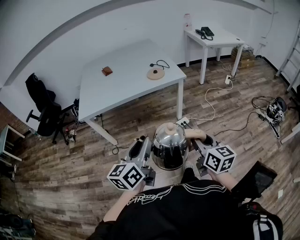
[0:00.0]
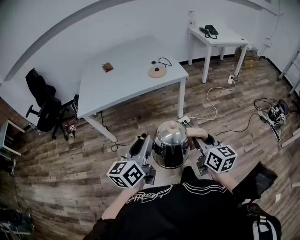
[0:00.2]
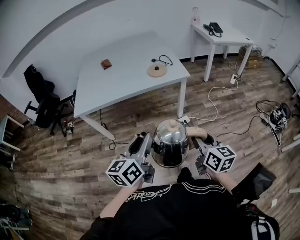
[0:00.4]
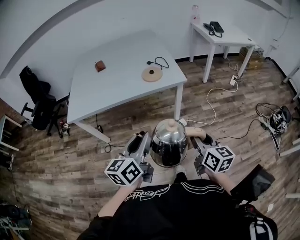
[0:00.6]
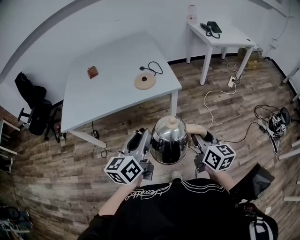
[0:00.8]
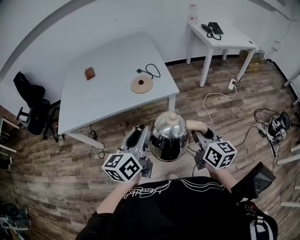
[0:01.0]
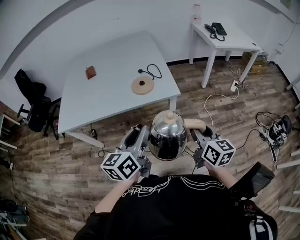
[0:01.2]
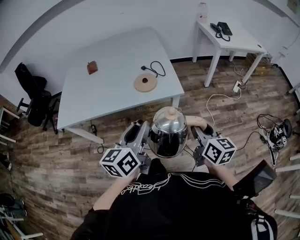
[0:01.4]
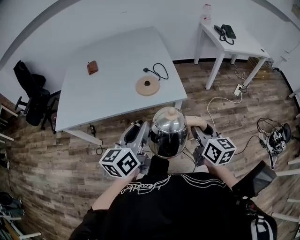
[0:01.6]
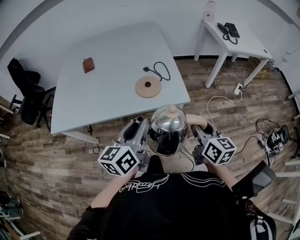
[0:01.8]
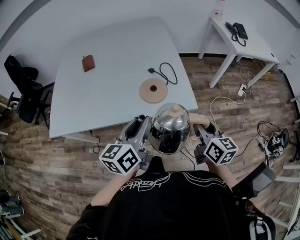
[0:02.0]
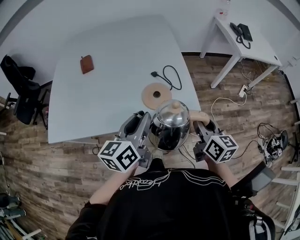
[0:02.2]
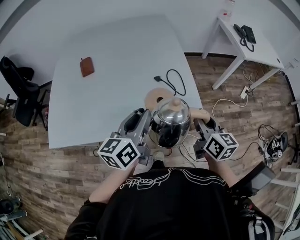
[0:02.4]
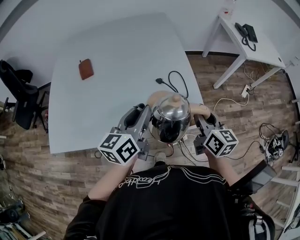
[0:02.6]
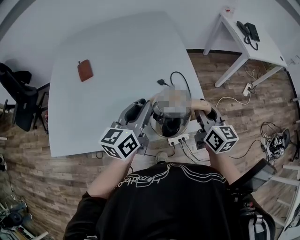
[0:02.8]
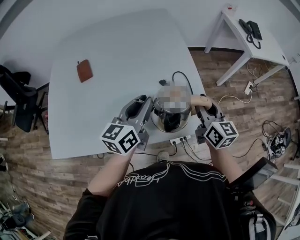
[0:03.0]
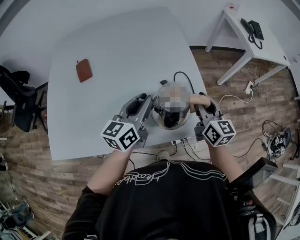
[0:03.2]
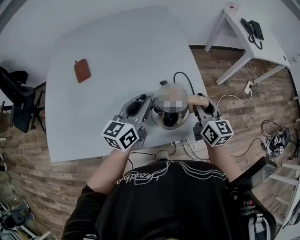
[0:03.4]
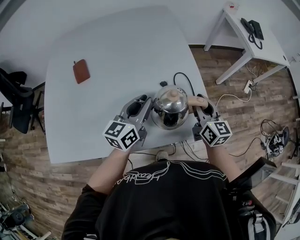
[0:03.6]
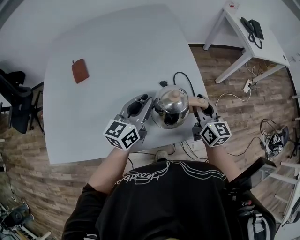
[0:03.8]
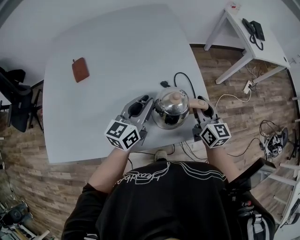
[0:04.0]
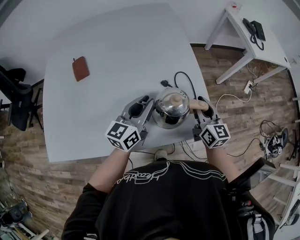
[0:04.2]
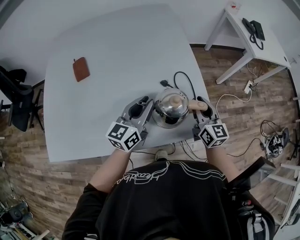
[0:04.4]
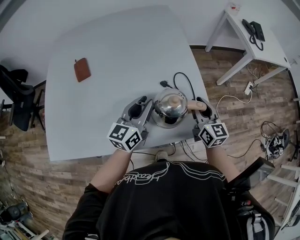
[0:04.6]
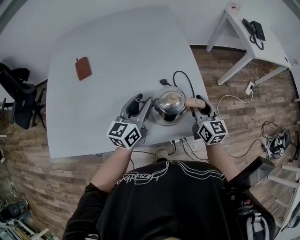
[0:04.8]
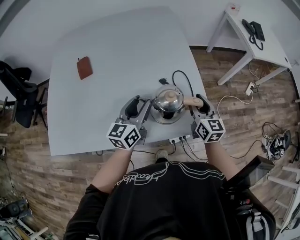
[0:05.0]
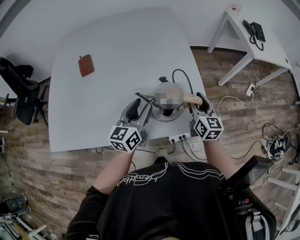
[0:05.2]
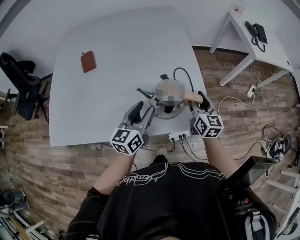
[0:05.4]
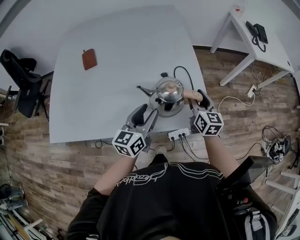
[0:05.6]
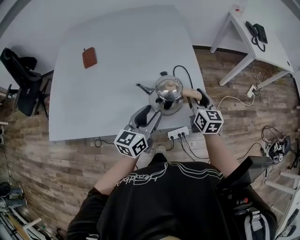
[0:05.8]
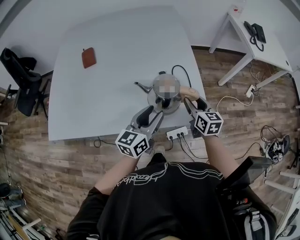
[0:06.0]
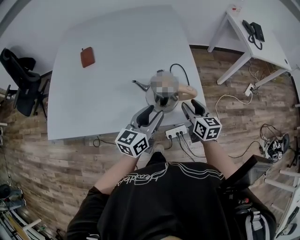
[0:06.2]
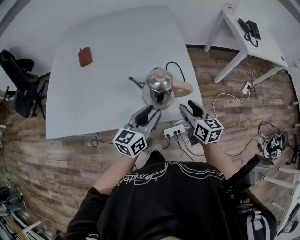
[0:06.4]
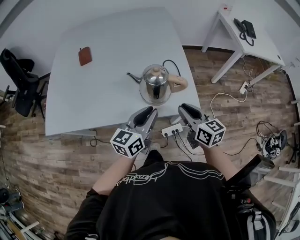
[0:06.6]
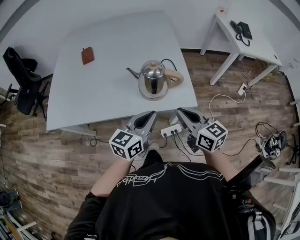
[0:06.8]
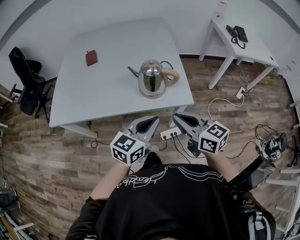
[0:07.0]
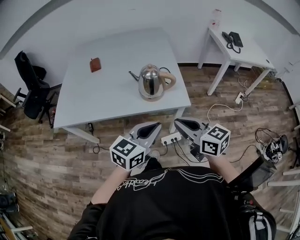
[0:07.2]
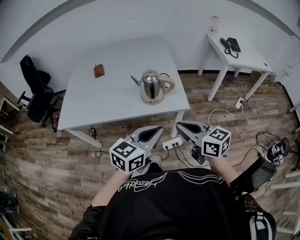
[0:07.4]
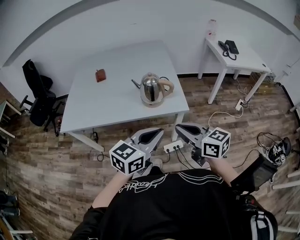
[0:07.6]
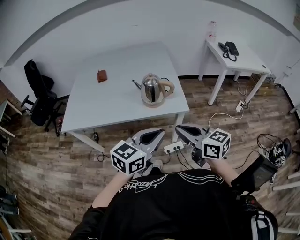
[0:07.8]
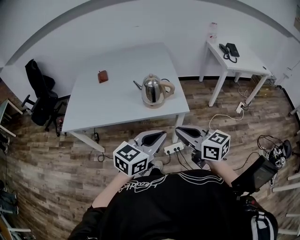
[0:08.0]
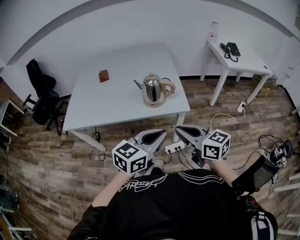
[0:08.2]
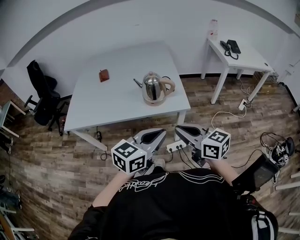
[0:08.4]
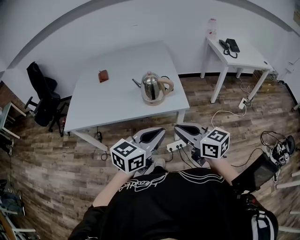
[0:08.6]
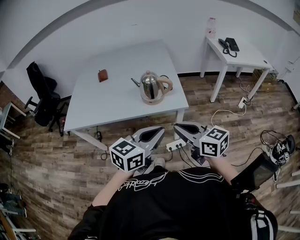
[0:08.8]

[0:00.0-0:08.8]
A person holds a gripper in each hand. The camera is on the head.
0:00.0 to 0:01.4: The grippers both shift forward and to the right by roughly 35 cm.
0:01.4 to 0:03.0: The two grippers go some 35 cm forward.
0:03.0 to 0:04.4: The grippers both shift downward by about 5 cm.
0:04.4 to 0:05.8: The left gripper travels backward by roughly 10 cm, and opens its fingers.
0:05.8 to 0:07.4: The two grippers go roughly 30 cm backward and upward. The left gripper closes up. Meanwhile the right gripper turns by some 40 degrees, and closes up.
0:07.4 to 0:08.8: The grippers stay close to where they were, moving slightly.

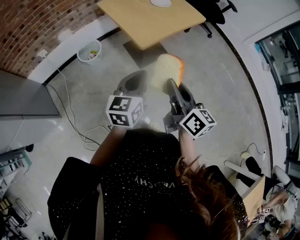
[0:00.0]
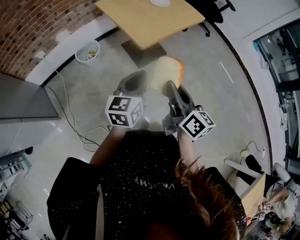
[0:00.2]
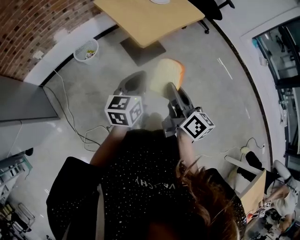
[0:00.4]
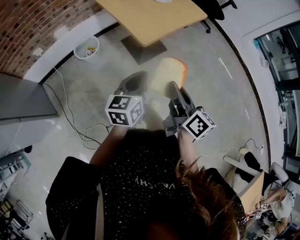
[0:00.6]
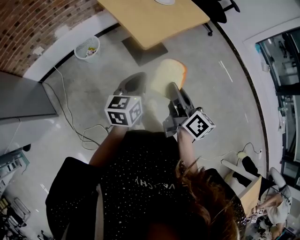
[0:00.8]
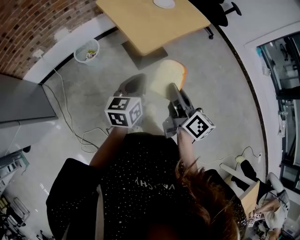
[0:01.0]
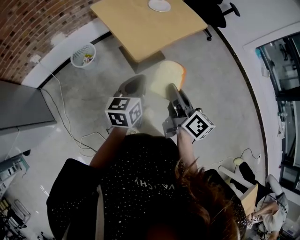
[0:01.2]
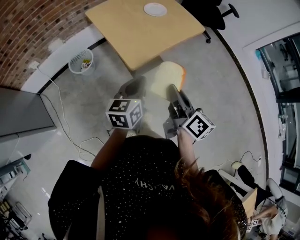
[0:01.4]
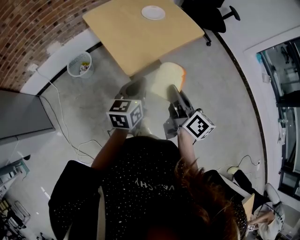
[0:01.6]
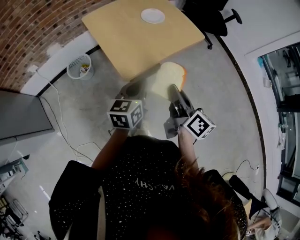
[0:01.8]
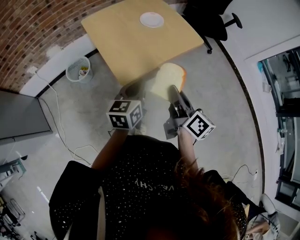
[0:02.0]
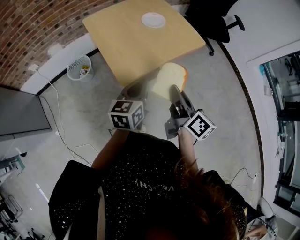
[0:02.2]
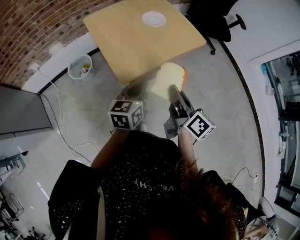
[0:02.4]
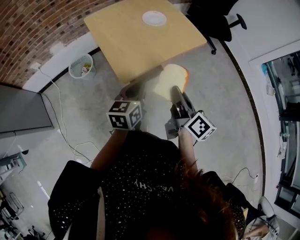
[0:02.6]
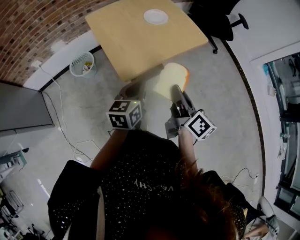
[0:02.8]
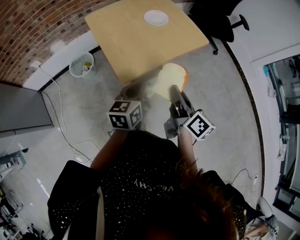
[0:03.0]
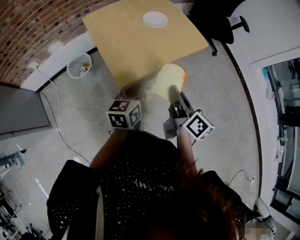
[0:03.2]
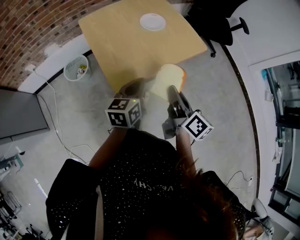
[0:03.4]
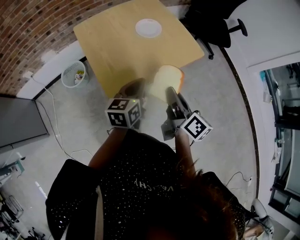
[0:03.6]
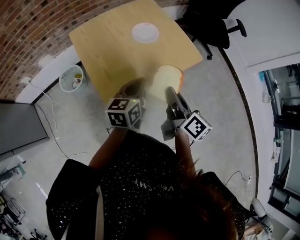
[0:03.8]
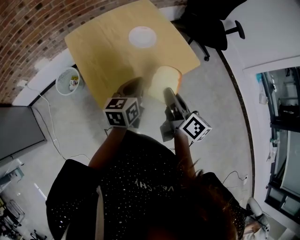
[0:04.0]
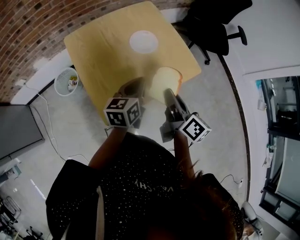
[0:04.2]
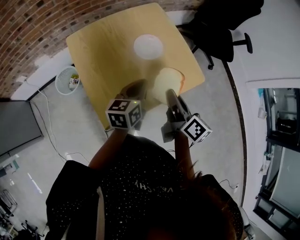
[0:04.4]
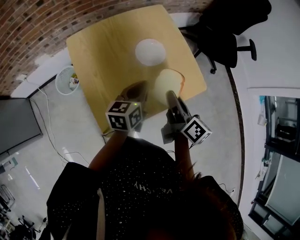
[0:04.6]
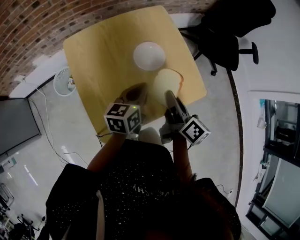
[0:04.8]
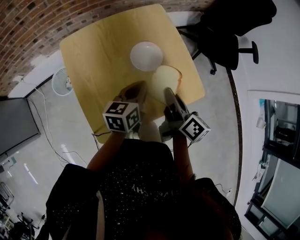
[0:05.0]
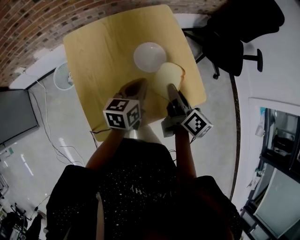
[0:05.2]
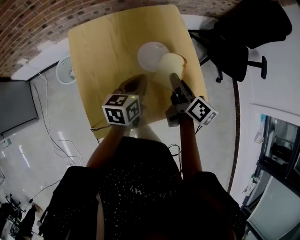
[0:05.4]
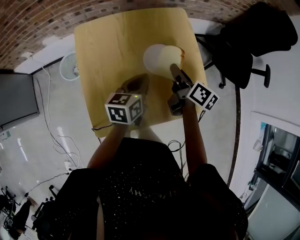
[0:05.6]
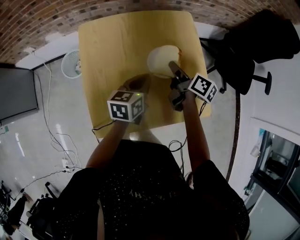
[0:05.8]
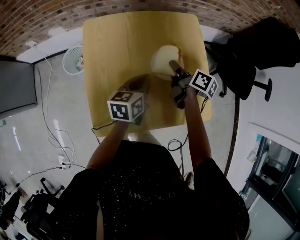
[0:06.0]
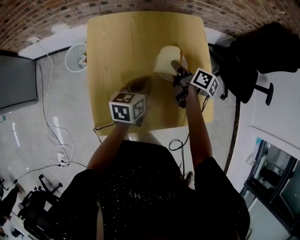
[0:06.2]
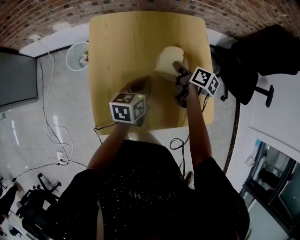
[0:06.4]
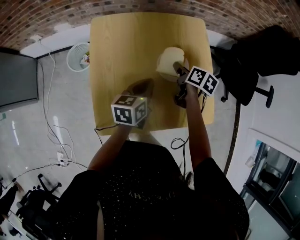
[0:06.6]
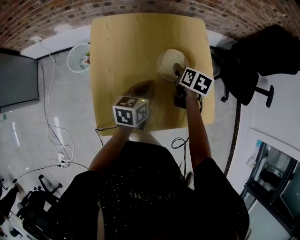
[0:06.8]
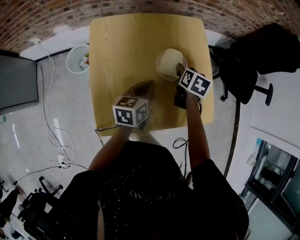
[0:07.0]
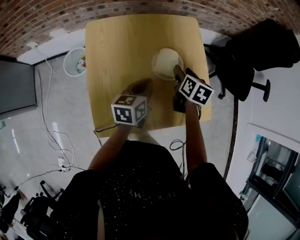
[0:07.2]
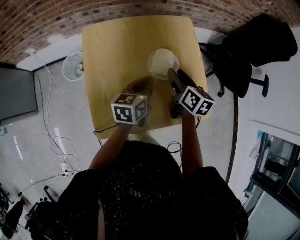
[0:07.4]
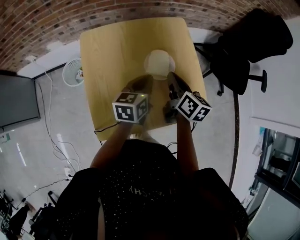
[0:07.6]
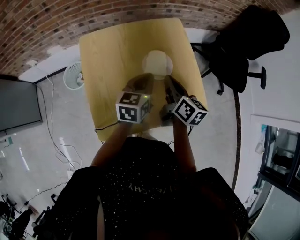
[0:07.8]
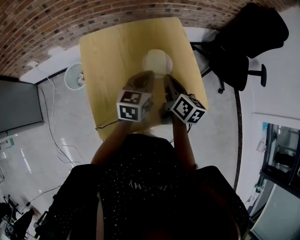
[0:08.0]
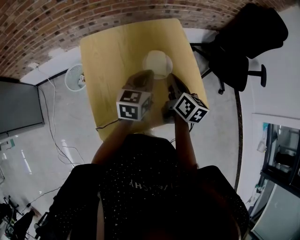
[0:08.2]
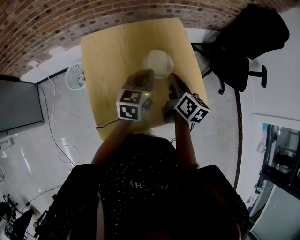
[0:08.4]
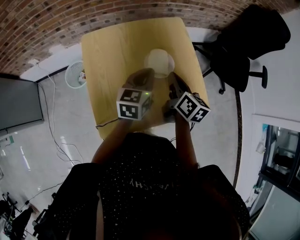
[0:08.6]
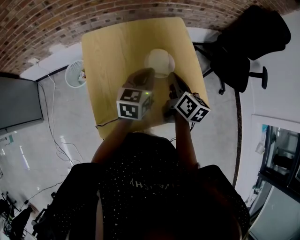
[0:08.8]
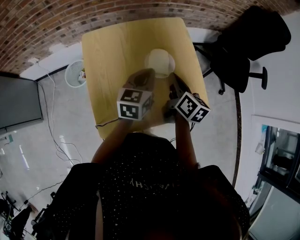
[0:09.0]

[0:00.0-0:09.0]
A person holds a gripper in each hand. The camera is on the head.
0:00.0 to 0:01.6: The right gripper shifts approximately 20 cm forward and to the right; the left gripper is displaced forward by about 20 cm.
0:01.6 to 0:03.0: Both grippers move forward, roughly 5 cm.
0:03.0 to 0:04.4: The grippers both shift forward by approximately 30 cm.
0:04.4 to 0:06.0: The left gripper travels forward and downward by some 15 cm, while the right gripper shifts approximately 30 cm forward and downward, and rotates approximately 30 degrees.
0:06.0 to 0:07.6: The right gripper goes approximately 10 cm upward and backward, turns by some 30 degrees, and opens, then closes once more.
0:07.6 to 0:09.0: The grippers make only small movements.

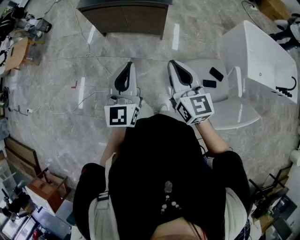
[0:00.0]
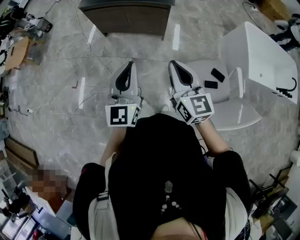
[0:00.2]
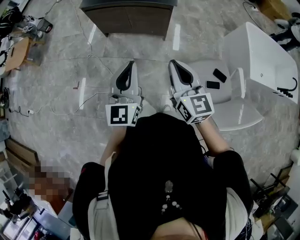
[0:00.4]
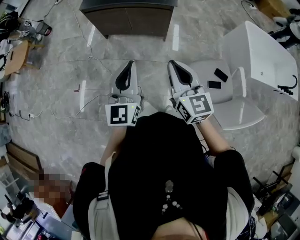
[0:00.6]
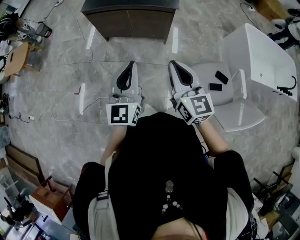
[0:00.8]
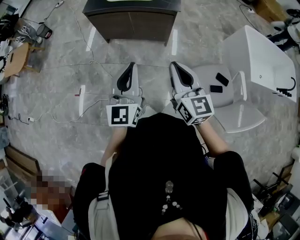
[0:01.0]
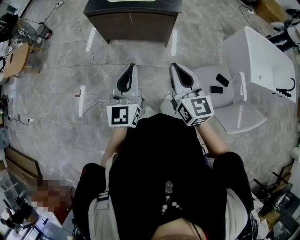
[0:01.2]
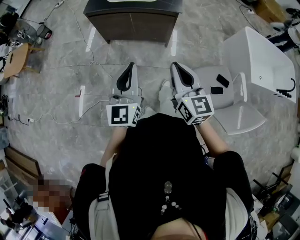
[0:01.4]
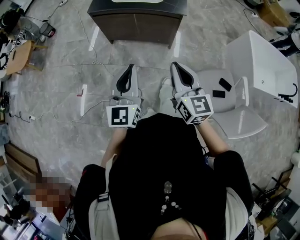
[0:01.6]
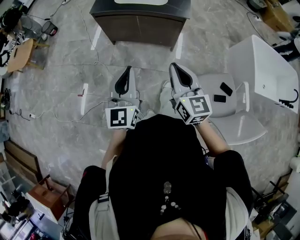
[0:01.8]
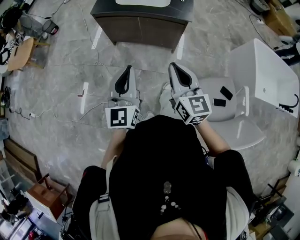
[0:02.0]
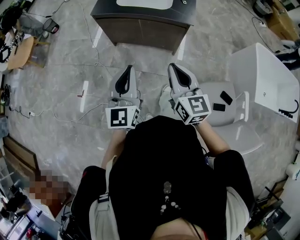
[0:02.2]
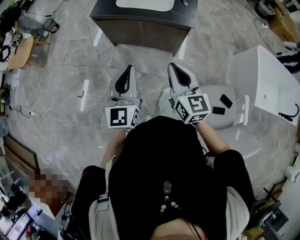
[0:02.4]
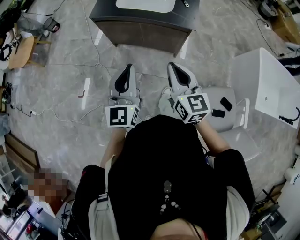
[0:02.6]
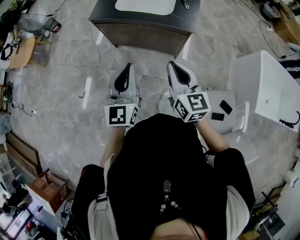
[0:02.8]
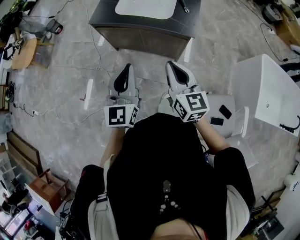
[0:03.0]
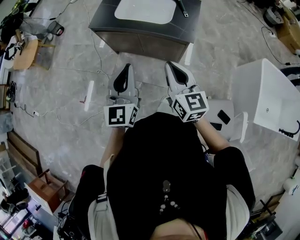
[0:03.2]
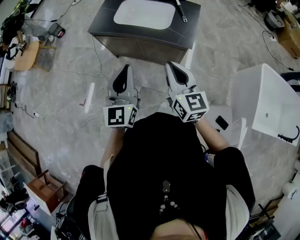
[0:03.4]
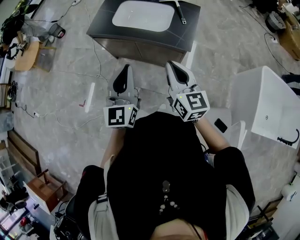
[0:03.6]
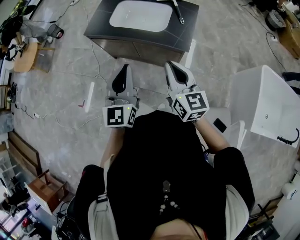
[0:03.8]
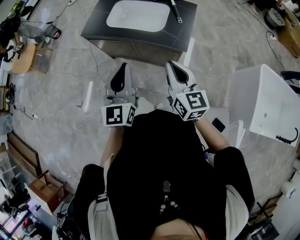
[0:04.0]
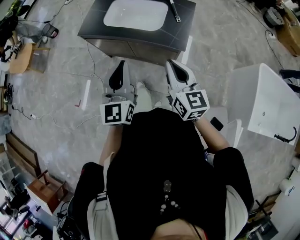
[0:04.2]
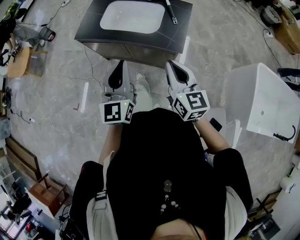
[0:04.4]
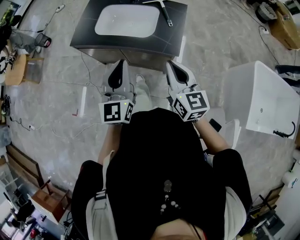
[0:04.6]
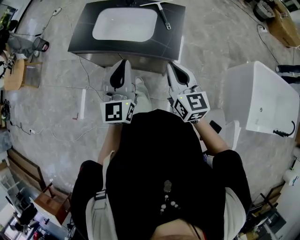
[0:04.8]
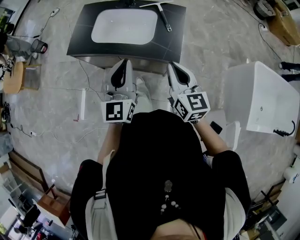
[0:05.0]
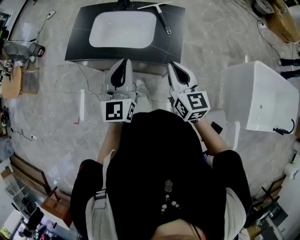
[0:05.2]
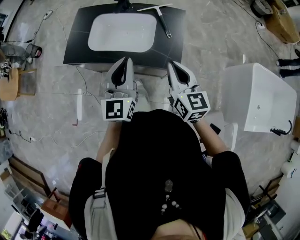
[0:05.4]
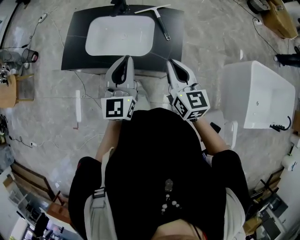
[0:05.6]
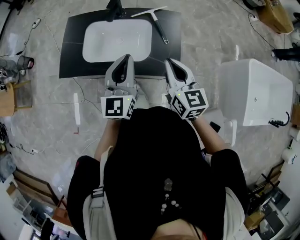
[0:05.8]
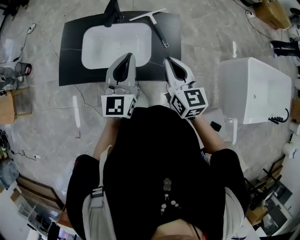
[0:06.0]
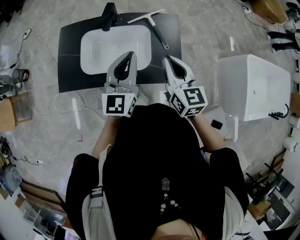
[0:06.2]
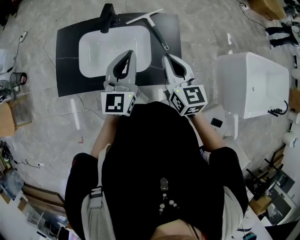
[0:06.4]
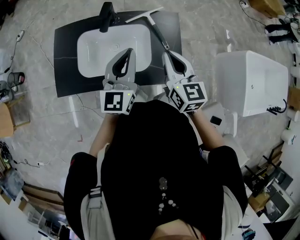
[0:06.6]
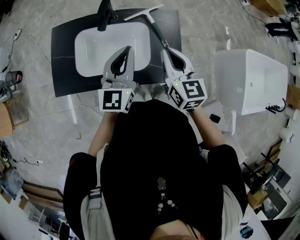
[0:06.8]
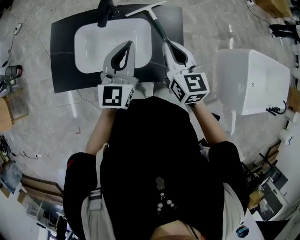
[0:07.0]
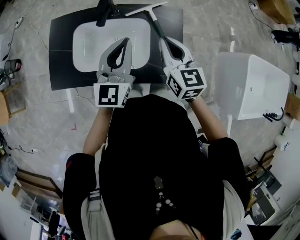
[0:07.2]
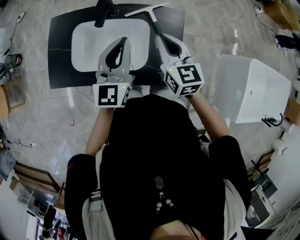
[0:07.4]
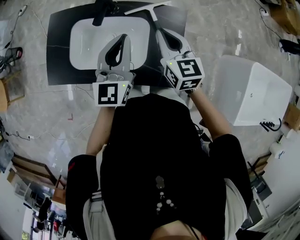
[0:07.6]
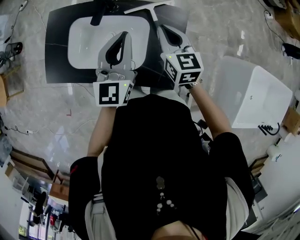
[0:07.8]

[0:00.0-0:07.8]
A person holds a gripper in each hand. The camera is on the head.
0:00.0 to 0:01.6: The two grippers go some 10 cm to the left and forward.
0:01.6 to 0:03.2: Both grippers move forward, about 25 cm.
0:03.2 to 0:04.6: Both grippers move forward and to the right, about 15 cm.
0:04.6 to 0:06.2: The two grippers go some 30 cm forward. The left gripper rotates approximately 20 degrees.
0:06.2 to 0:07.8: The right gripper travels forward and downward by approximately 20 cm. The left gripper shifts about 15 cm forward.
